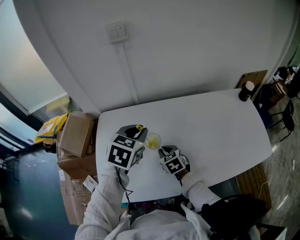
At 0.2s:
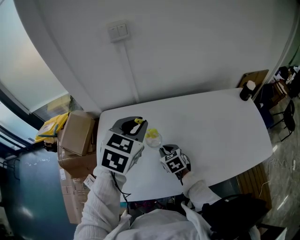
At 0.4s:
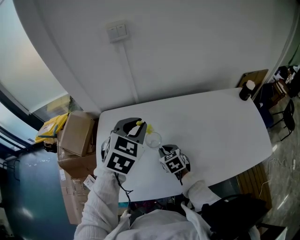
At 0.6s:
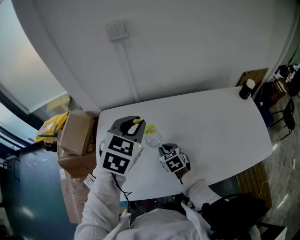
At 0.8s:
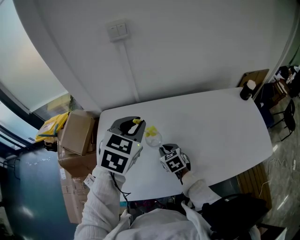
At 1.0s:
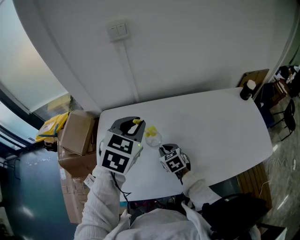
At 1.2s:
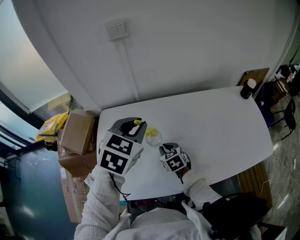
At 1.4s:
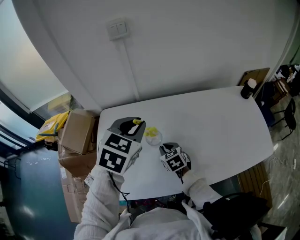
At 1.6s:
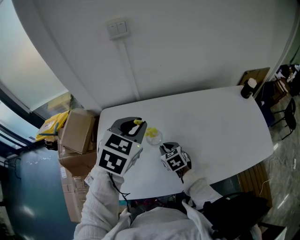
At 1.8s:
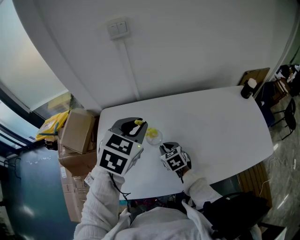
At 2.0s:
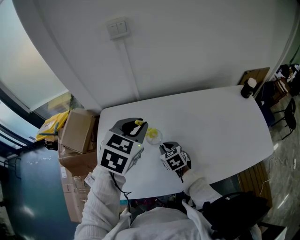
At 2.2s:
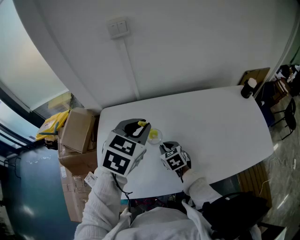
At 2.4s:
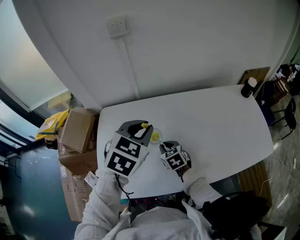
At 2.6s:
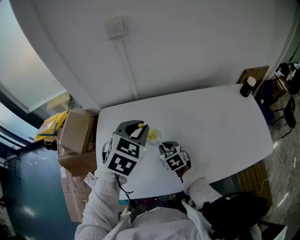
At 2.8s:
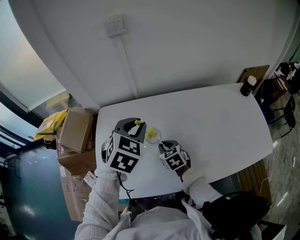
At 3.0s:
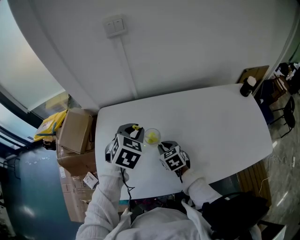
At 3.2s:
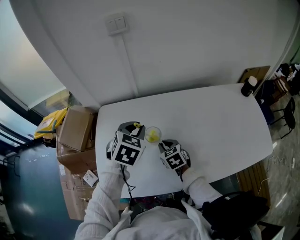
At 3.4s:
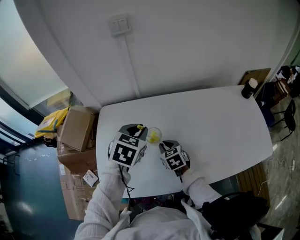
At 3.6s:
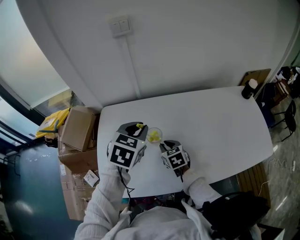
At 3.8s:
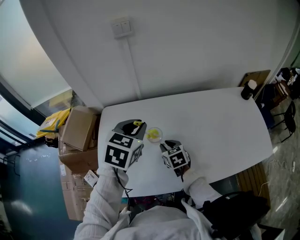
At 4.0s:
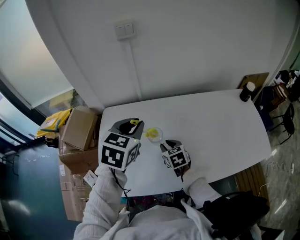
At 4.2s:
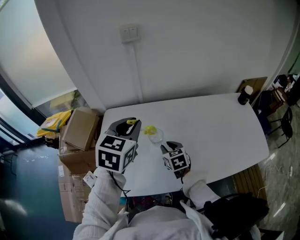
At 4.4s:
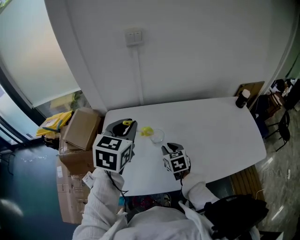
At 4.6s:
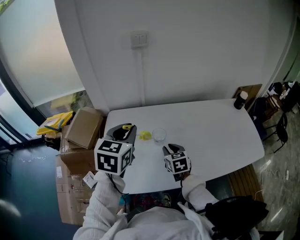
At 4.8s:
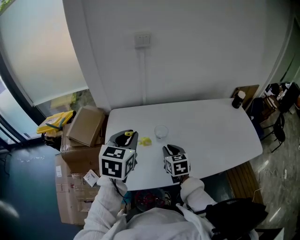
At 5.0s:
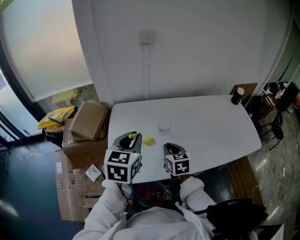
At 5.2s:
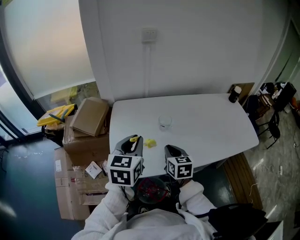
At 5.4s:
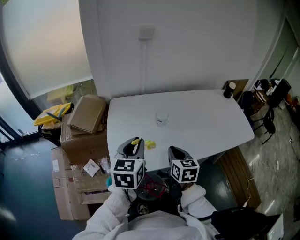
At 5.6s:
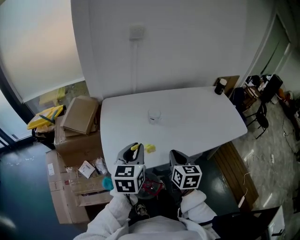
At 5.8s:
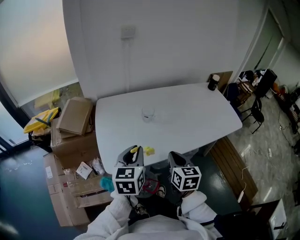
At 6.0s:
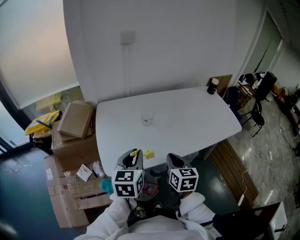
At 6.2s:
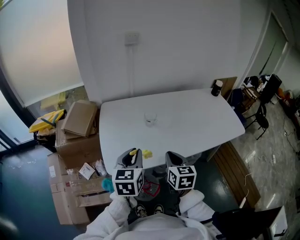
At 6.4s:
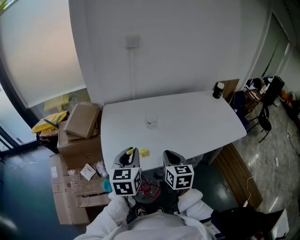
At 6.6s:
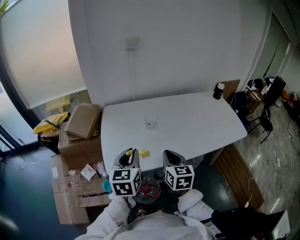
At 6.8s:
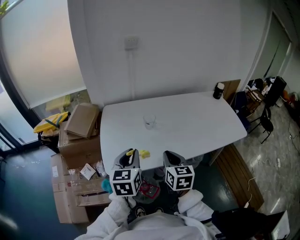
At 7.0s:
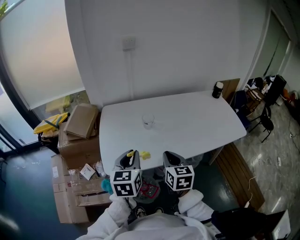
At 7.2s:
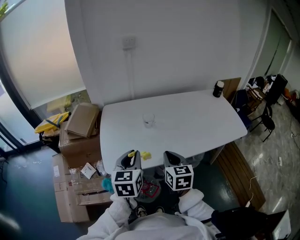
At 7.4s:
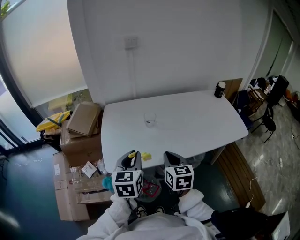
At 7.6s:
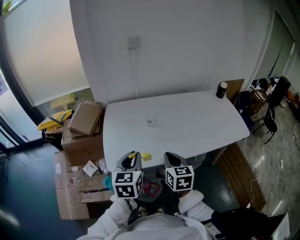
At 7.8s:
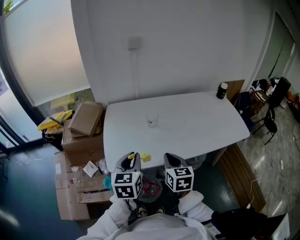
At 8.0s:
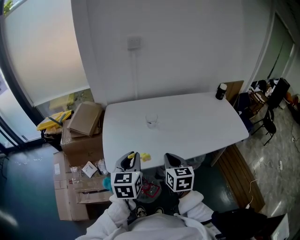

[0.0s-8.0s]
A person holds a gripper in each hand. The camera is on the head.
0.0s to 1.6s: The left gripper heads upward, covering roughly 5 cm.
1.6s to 3.2s: The left gripper is displaced downward by approximately 10 cm.
3.2s to 4.8s: The left gripper shifts roughly 20 cm backward, to the left and upward, and swivels roughly 20 degrees; the right gripper is displaced upward and backward by some 10 cm.
4.8s to 6.4s: The left gripper goes about 15 cm backward; the right gripper heads backward and upward, covering about 20 cm.
6.4s to 8.0s: There are only small adjustments of the grippers.

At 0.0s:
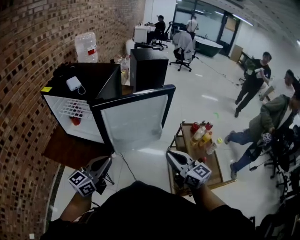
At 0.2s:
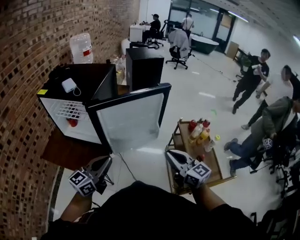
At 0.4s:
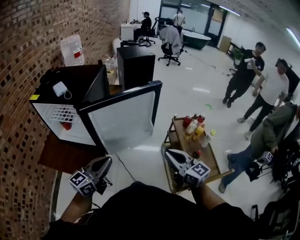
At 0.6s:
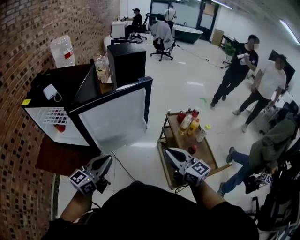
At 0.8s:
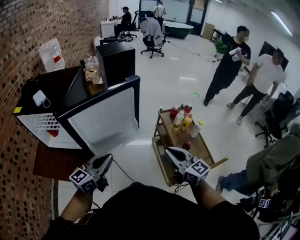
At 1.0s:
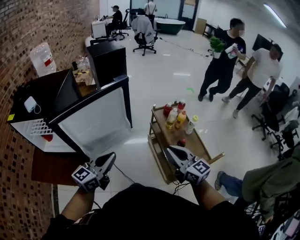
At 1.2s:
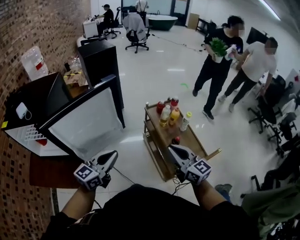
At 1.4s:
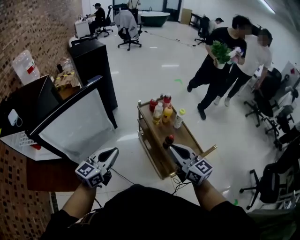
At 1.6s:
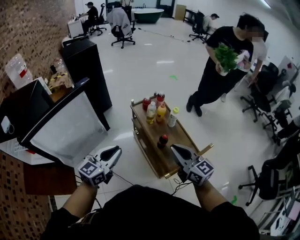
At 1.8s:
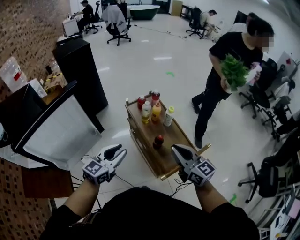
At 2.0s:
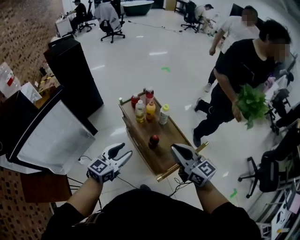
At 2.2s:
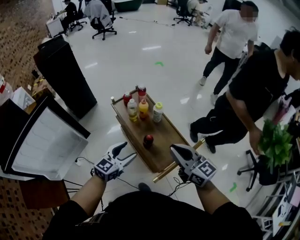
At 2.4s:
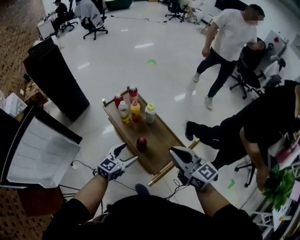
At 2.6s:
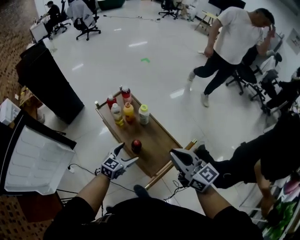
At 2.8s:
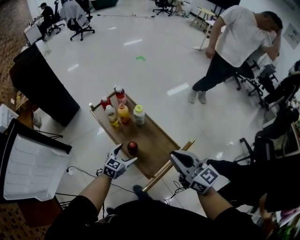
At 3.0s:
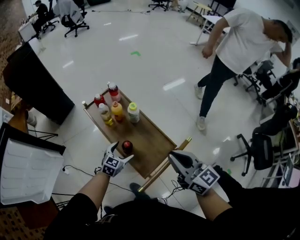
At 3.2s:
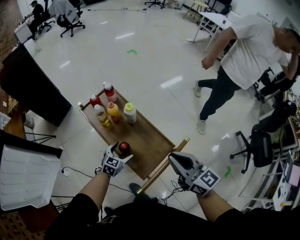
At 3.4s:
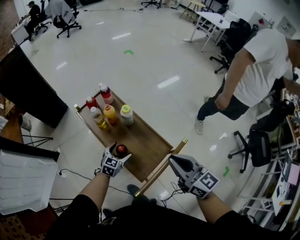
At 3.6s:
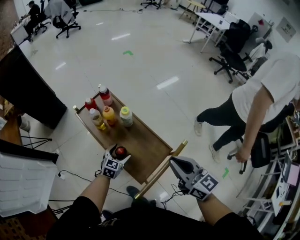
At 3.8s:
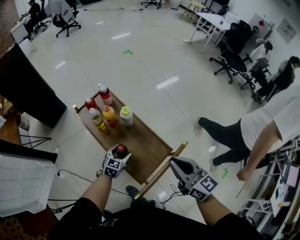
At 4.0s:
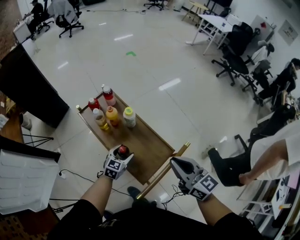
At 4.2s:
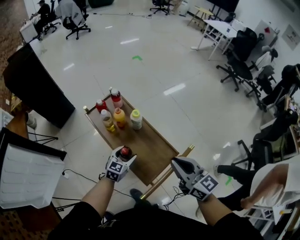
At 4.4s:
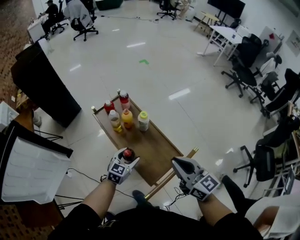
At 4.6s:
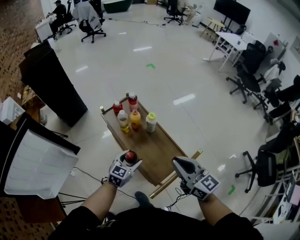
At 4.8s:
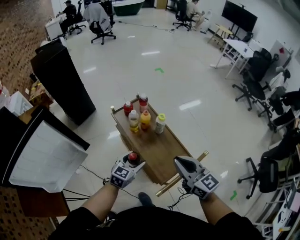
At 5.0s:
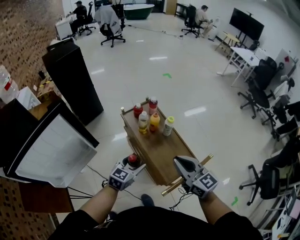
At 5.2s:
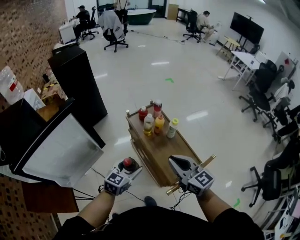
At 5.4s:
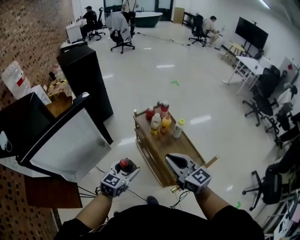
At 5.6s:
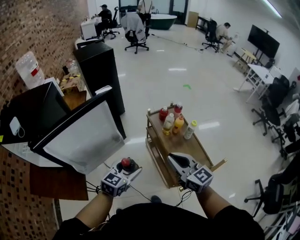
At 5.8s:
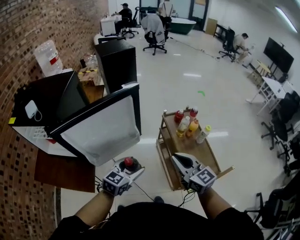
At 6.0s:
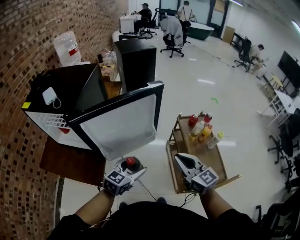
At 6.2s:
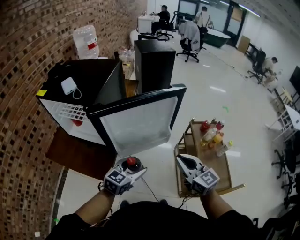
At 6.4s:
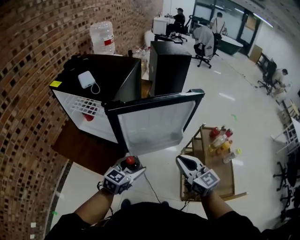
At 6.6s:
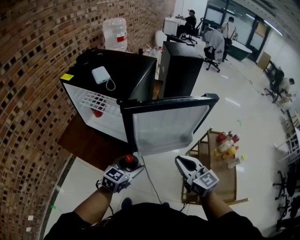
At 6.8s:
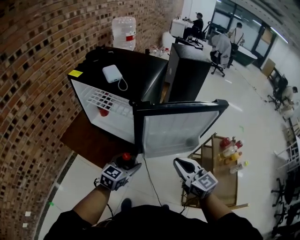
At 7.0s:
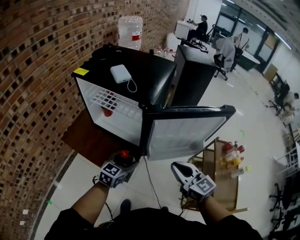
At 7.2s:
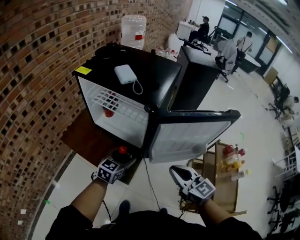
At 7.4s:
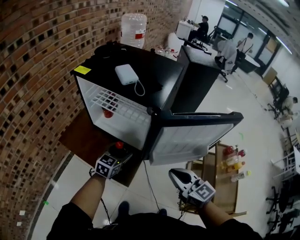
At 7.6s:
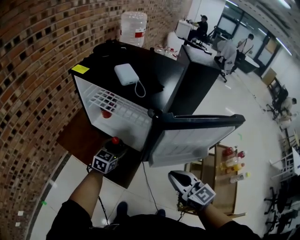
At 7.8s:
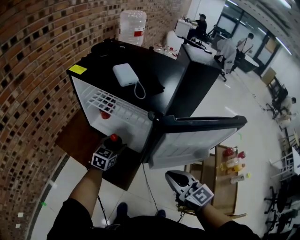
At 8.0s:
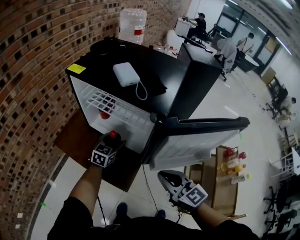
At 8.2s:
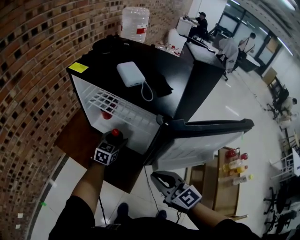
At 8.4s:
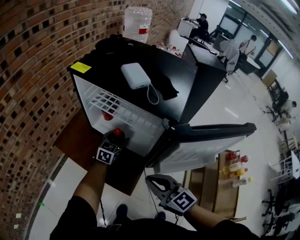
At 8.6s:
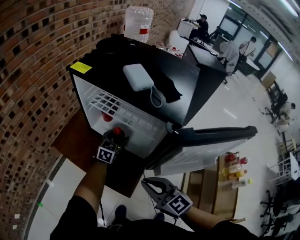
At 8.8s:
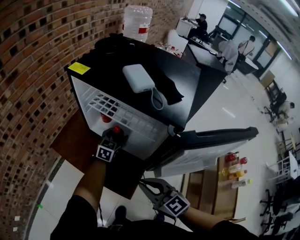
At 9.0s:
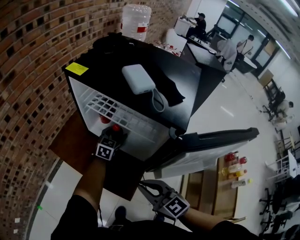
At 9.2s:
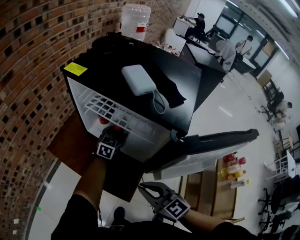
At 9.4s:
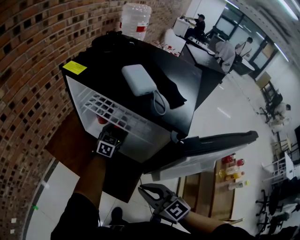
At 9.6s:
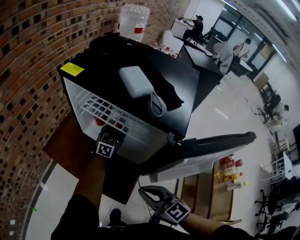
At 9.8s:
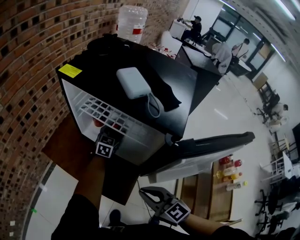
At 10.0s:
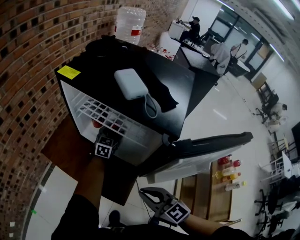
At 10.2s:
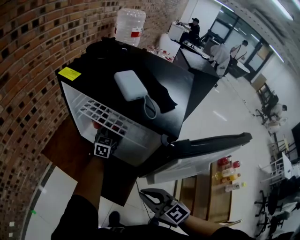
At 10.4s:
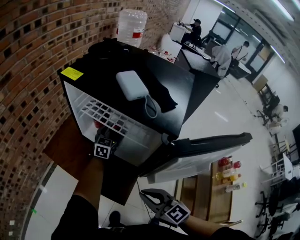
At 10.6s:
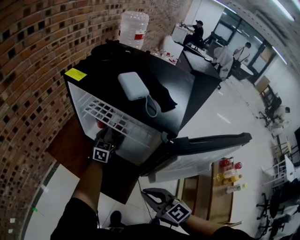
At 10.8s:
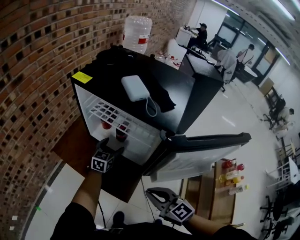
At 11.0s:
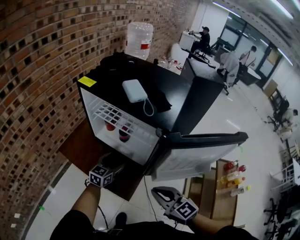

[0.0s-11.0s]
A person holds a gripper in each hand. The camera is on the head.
0.0s to 1.6s: The left gripper shifts by about 35 cm, and rotates some 30 degrees, while the right gripper shifts by approximately 30 cm, and changes its angle by roughly 30 degrees.
1.6s to 3.2s: The left gripper travels downward, to the right and forward by some 50 cm, rotates about 30 degrees, and opens up; the right gripper shifts some 20 cm to the right, forward and downward.
3.2s to 4.8s: The right gripper travels to the left by roughly 10 cm, while the left gripper is displaced upward and to the left by some 15 cm.
4.8s to 6.2s: The left gripper moves approximately 40 cm, and turns by approximately 30 degrees; the right gripper shifts by approximately 40 cm, and changes its angle by about 30 degrees.
6.2s to 7.8s: The right gripper is displaced to the left by about 25 cm, and changes its angle by approximately 20 degrees; the left gripper heads to the left and forward, covering approximately 40 cm, and turns by some 30 degrees.
7.8s to 9.4s: The left gripper heads forward, covering approximately 15 cm, while the right gripper shifts approximately 15 cm to the left, downward and forward.
9.4s to 11.0s: The left gripper goes roughly 15 cm backward, while the right gripper travels to the right and backward by approximately 10 cm.

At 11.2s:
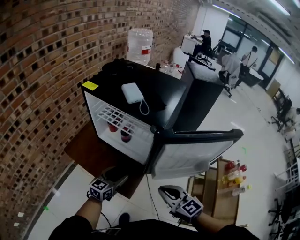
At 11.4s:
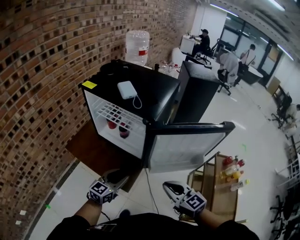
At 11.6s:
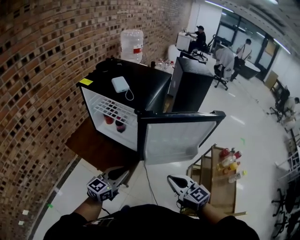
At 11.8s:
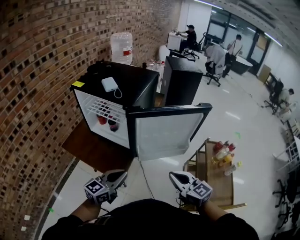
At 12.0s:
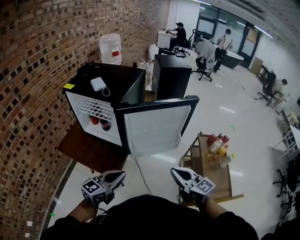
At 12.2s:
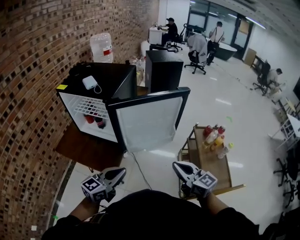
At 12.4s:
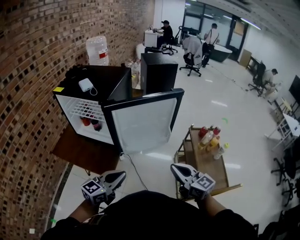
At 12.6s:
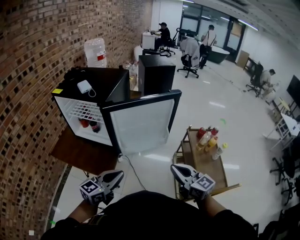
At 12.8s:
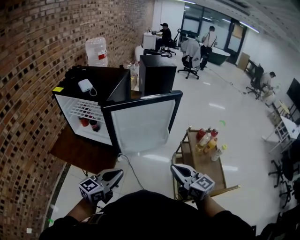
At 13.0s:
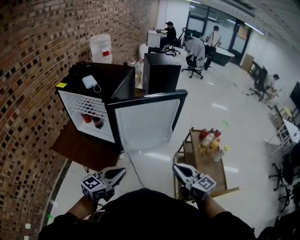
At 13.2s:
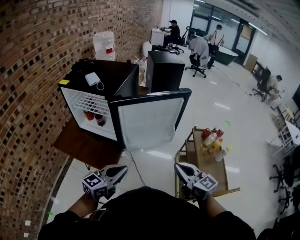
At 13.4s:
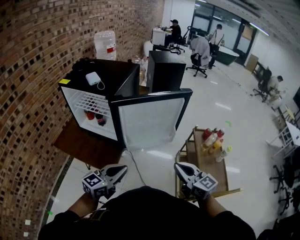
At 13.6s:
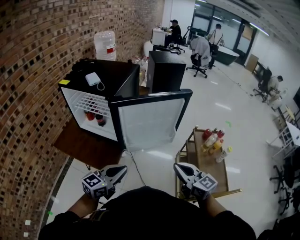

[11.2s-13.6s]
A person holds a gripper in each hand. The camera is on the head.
11.2s to 12.4s: The left gripper goes roughly 30 cm backward, to the right and upward, rotates some 20 degrees, and closes up, while the right gripper shifts some 25 cm to the right and backward, and changes its angle by some 20 degrees.
12.4s to 13.6s: There are only small adjustments of the grippers.

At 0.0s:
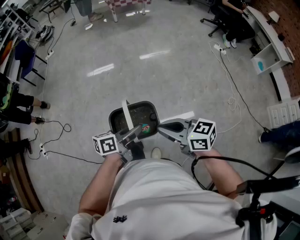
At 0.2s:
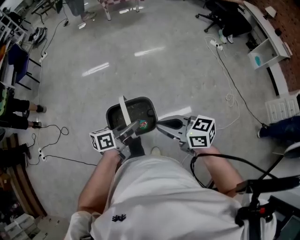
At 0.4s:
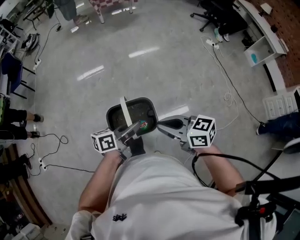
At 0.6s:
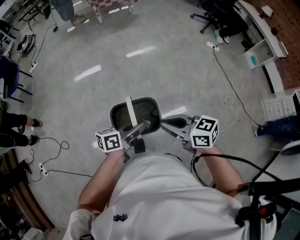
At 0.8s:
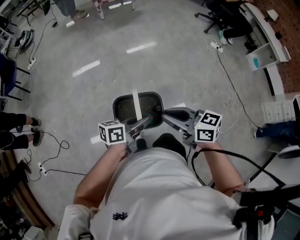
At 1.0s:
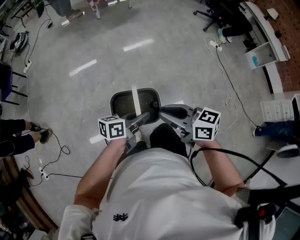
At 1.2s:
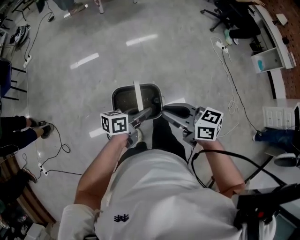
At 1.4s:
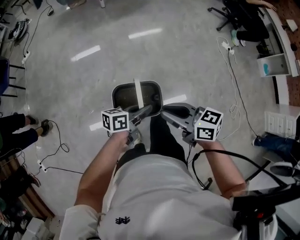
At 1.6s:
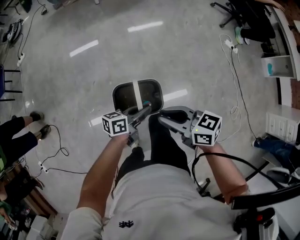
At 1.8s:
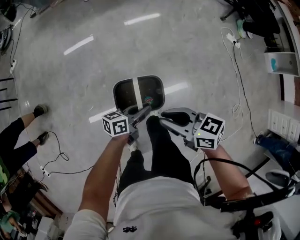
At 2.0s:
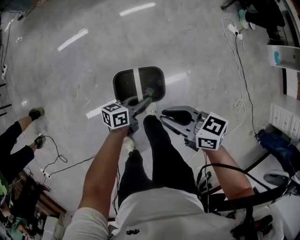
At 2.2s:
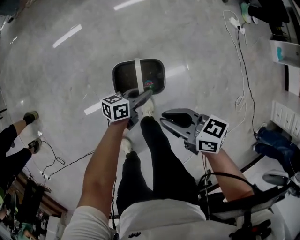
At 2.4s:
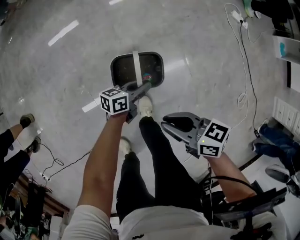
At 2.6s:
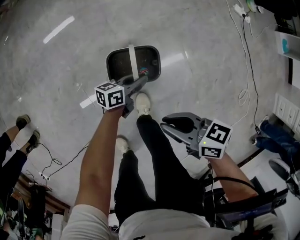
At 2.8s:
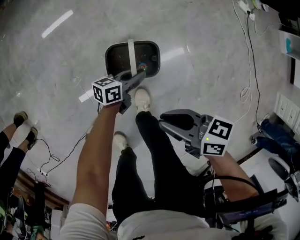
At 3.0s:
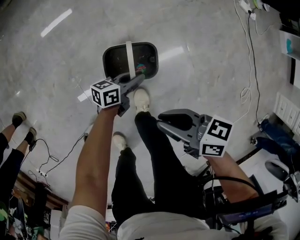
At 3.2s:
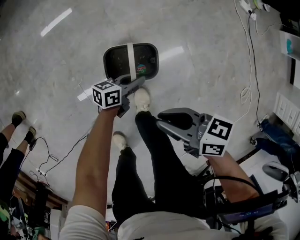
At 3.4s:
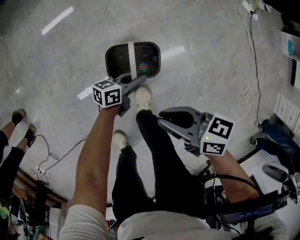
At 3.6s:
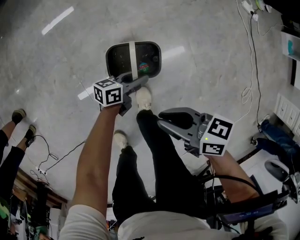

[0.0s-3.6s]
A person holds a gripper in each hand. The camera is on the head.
0.0s to 1.8s: The two grippers travel together, about 60 cm.
1.8s to 3.6s: The grippers both shift downward by approximately 30 cm.
